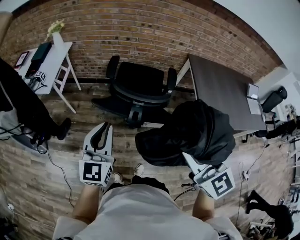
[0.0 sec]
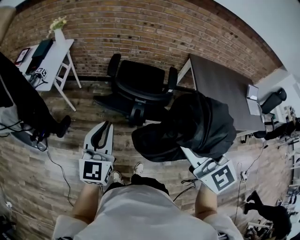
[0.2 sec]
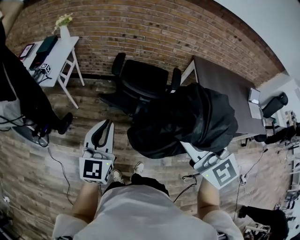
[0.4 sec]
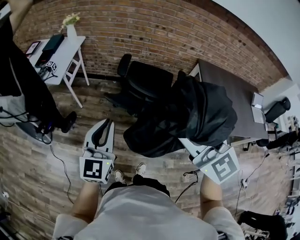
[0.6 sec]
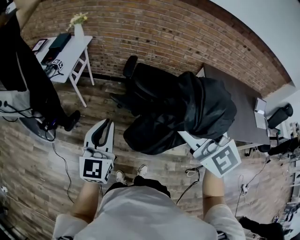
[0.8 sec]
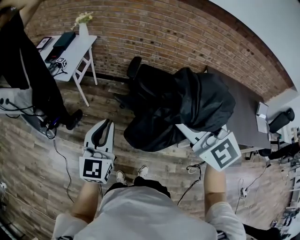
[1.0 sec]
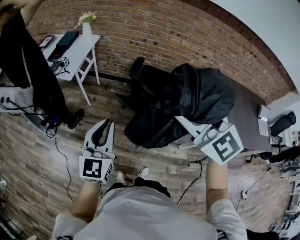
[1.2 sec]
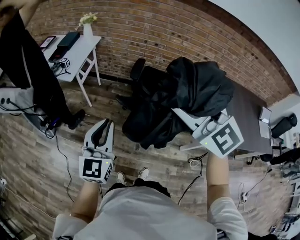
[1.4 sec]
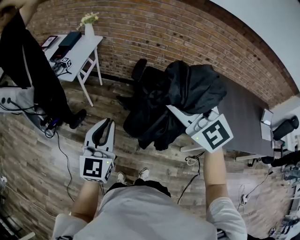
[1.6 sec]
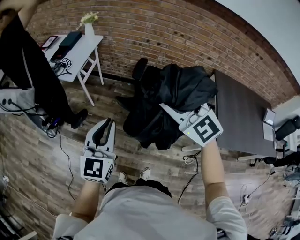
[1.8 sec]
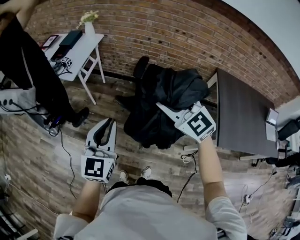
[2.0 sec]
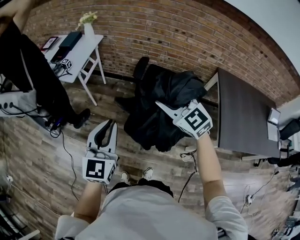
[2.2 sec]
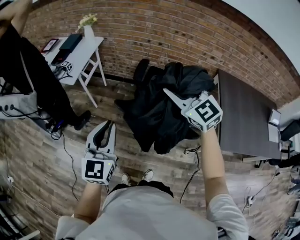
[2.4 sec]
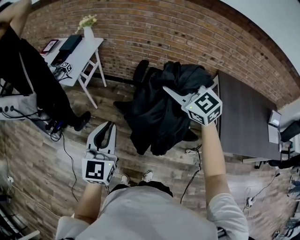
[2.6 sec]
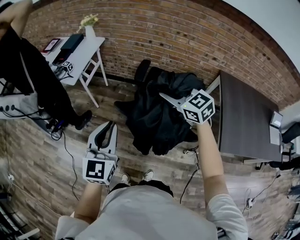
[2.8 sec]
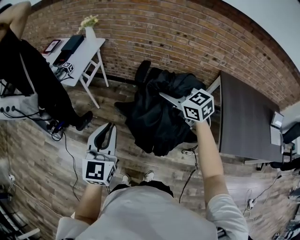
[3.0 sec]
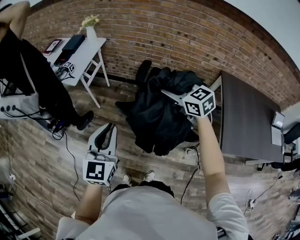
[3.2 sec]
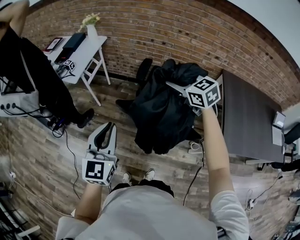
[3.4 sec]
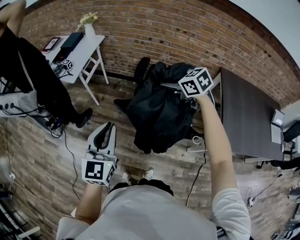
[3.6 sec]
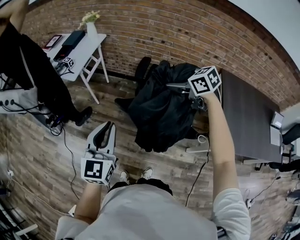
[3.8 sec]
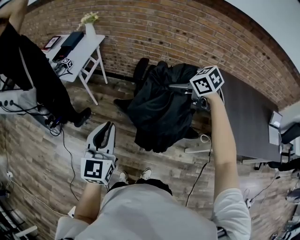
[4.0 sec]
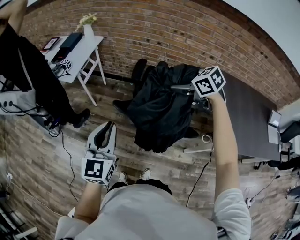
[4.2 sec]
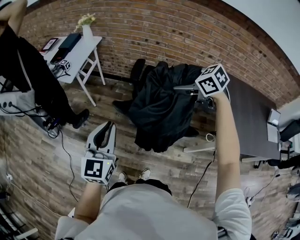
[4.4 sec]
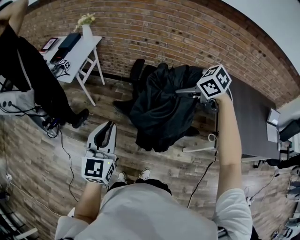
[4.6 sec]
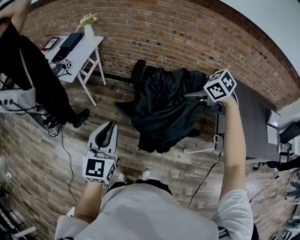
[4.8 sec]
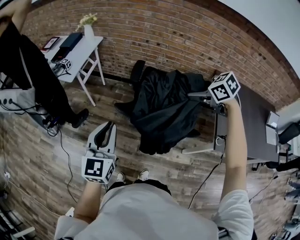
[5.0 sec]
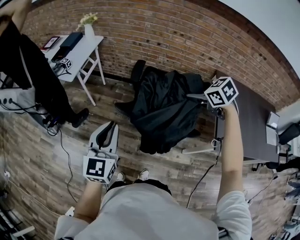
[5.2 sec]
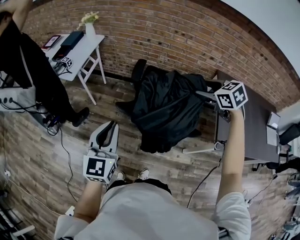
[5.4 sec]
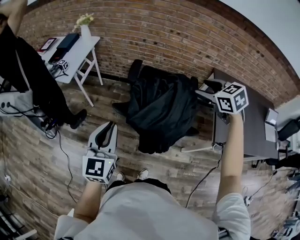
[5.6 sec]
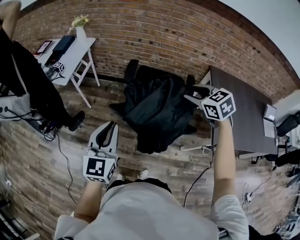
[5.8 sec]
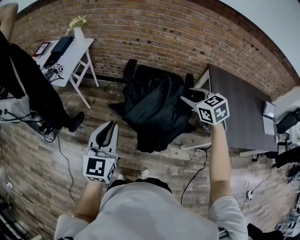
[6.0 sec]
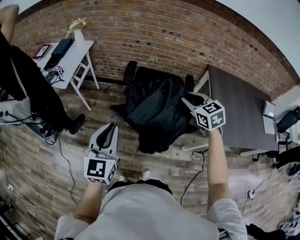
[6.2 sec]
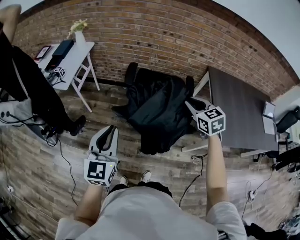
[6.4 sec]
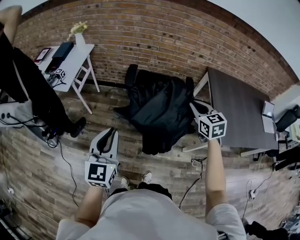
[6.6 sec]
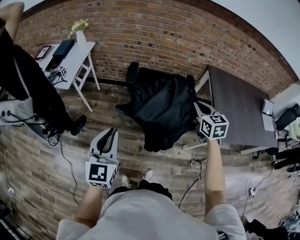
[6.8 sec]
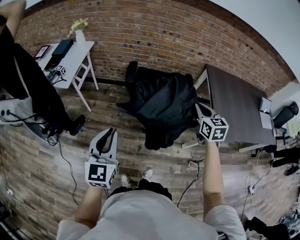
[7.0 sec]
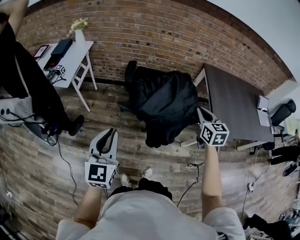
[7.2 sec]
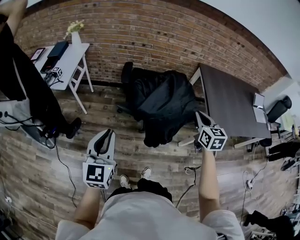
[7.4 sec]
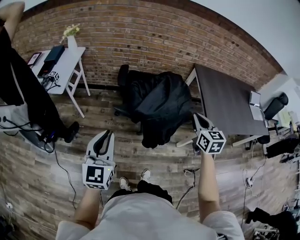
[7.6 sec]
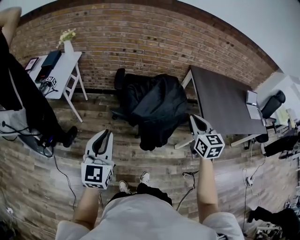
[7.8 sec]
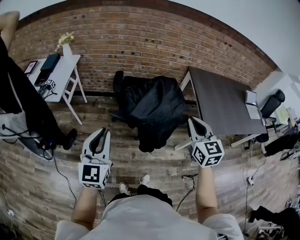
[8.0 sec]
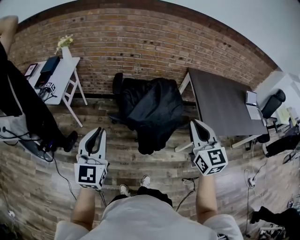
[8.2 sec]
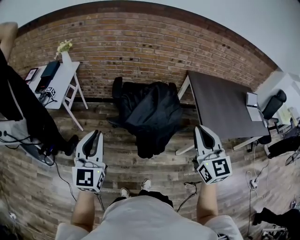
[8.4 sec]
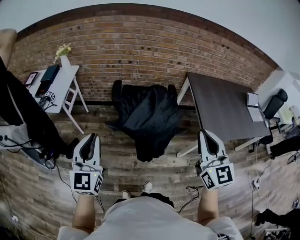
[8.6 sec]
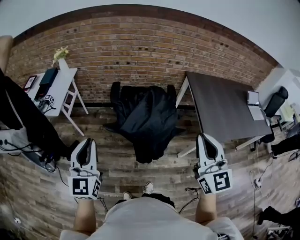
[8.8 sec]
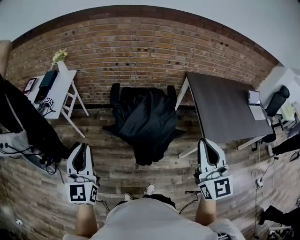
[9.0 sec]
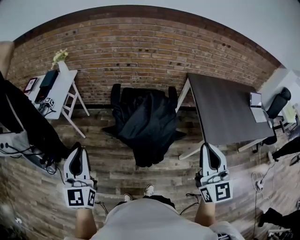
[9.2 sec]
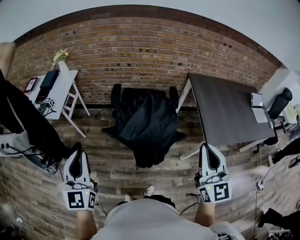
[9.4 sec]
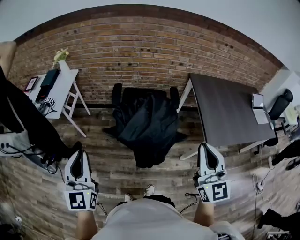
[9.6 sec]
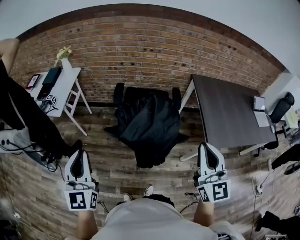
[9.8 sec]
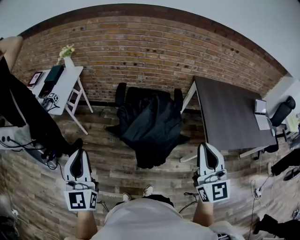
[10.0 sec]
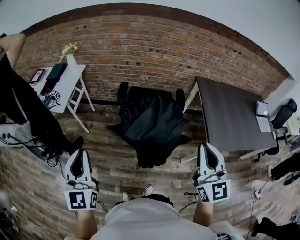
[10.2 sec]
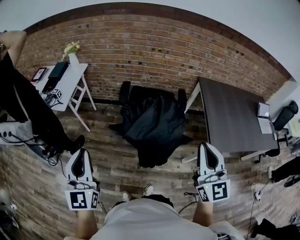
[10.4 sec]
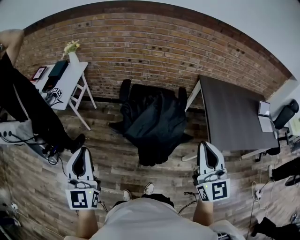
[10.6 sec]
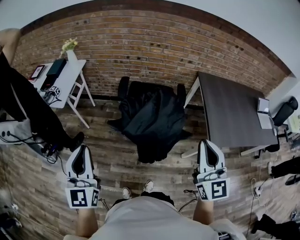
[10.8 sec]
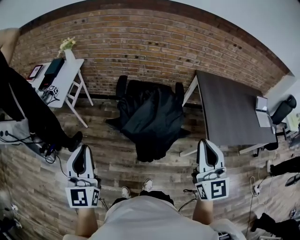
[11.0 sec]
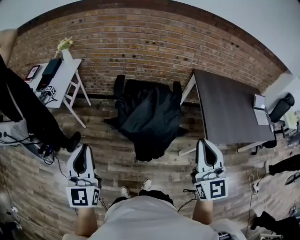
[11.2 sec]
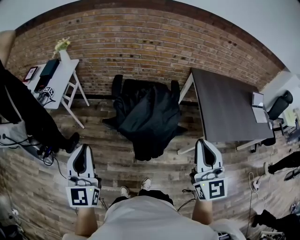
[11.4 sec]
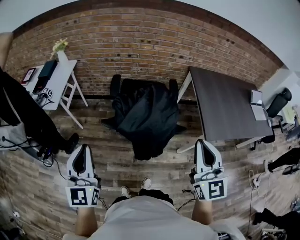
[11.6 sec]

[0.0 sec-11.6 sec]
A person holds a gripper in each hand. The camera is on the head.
0.0 sec to 1.4 sec: The left gripper travels to the left by about 10 cm, while the right gripper shifts approximately 20 cm forward, to the left and upward, and rotates approximately 40 degrees.
1.4 sec to 2.8 sec: The left gripper heads to the right, covering roughly 5 cm. Meanwhile the right gripper swings up and down, roughly 15 cm each way, with 2 reversals, and swivels some 30 degrees.
2.8 sec to 4.4 sec: The right gripper moves to the right, approximately 10 cm, swivels approximately 30 degrees, and opens its fingers.
4.4 sec to 5.8 sec: The right gripper shifts roughly 10 cm to the right and backward, and swivels some 20 degrees.
5.8 sec to 7.2 sec: The left gripper shifts roughly 10 cm to the left and backward. The right gripper is displaced backward by roughly 10 cm, changes its angle by approximately 40 degrees, and closes up.
7.2 sec to 8.8 sec: The left gripper travels upward by roughly 5 cm; the right gripper goes about 20 cm upward and backward, and changes its angle by roughly 30 degrees.
8.8 sec to 11.6 sec: The grippers move only a little.

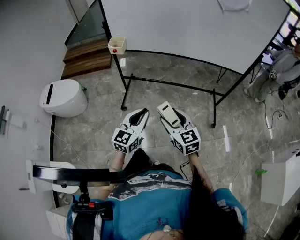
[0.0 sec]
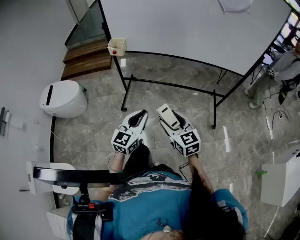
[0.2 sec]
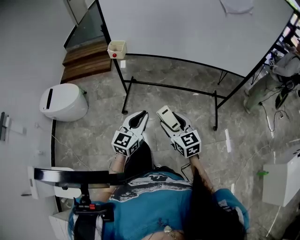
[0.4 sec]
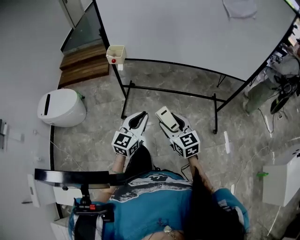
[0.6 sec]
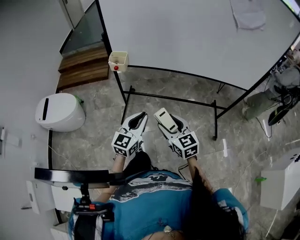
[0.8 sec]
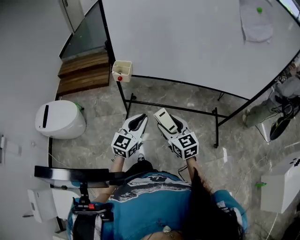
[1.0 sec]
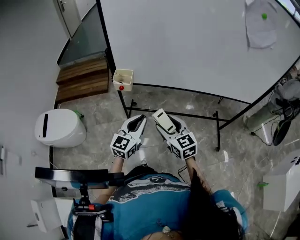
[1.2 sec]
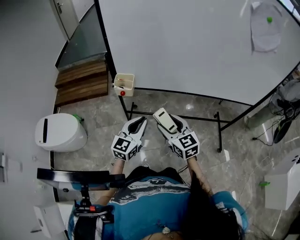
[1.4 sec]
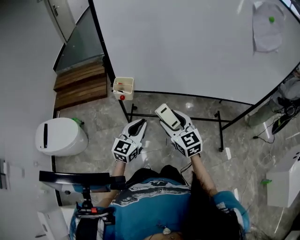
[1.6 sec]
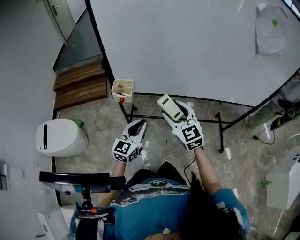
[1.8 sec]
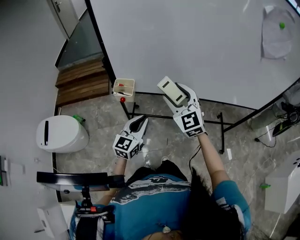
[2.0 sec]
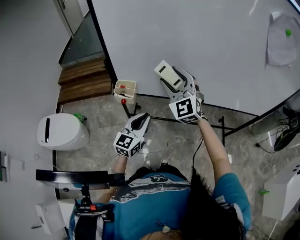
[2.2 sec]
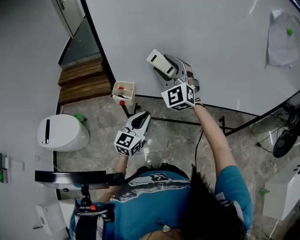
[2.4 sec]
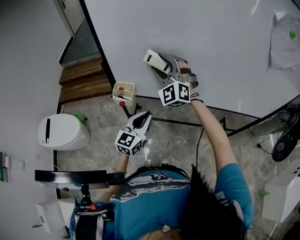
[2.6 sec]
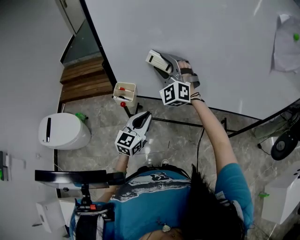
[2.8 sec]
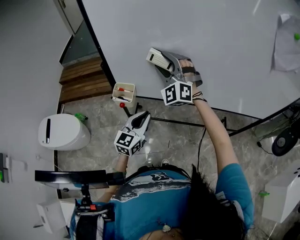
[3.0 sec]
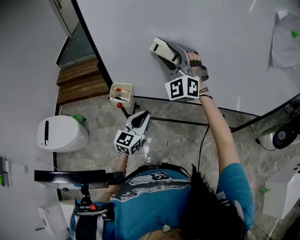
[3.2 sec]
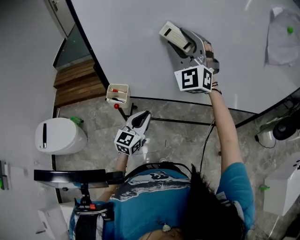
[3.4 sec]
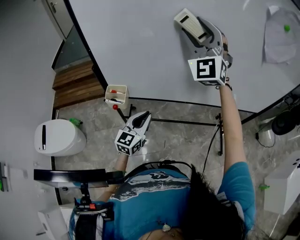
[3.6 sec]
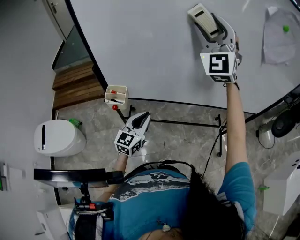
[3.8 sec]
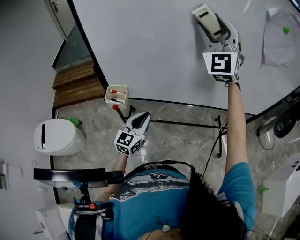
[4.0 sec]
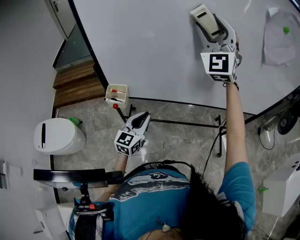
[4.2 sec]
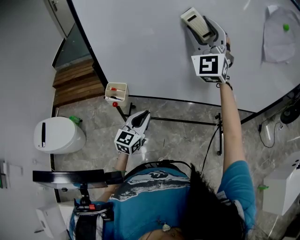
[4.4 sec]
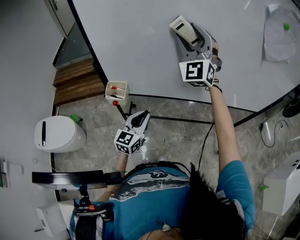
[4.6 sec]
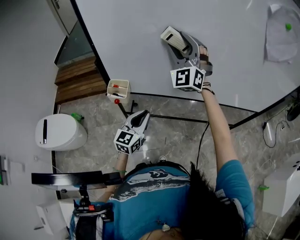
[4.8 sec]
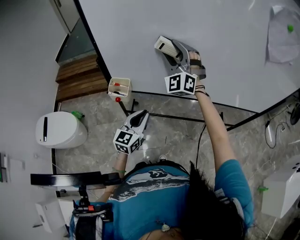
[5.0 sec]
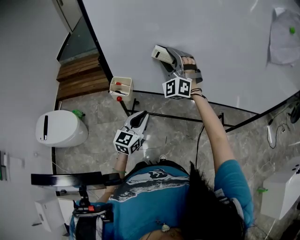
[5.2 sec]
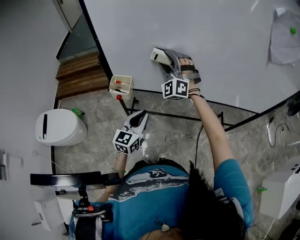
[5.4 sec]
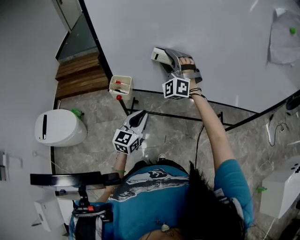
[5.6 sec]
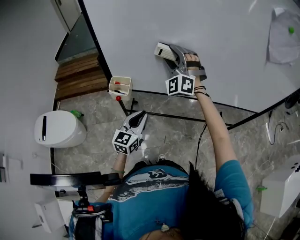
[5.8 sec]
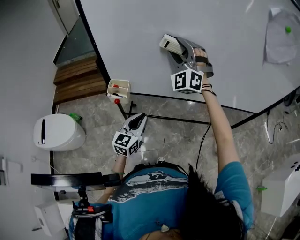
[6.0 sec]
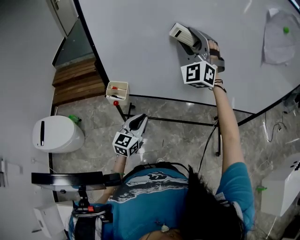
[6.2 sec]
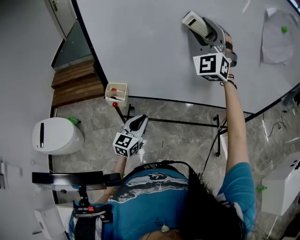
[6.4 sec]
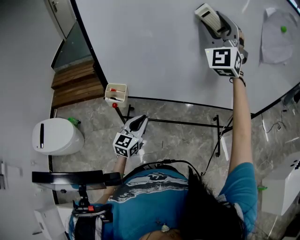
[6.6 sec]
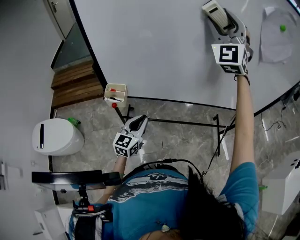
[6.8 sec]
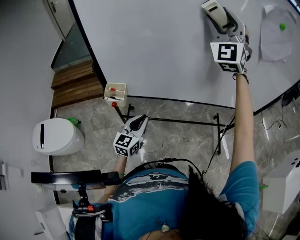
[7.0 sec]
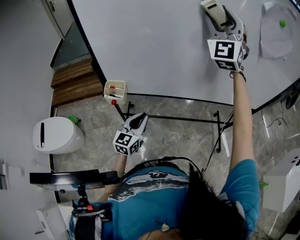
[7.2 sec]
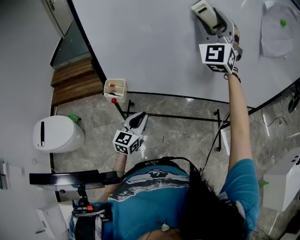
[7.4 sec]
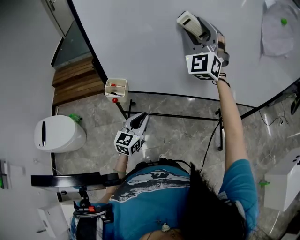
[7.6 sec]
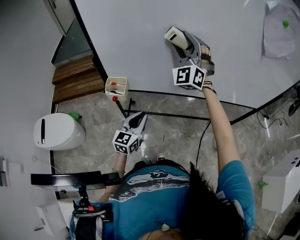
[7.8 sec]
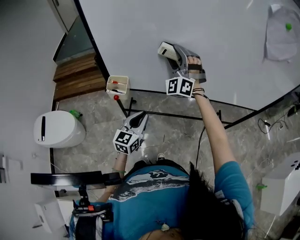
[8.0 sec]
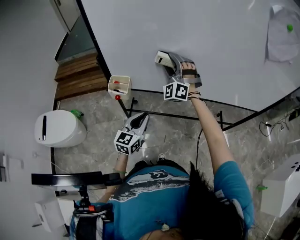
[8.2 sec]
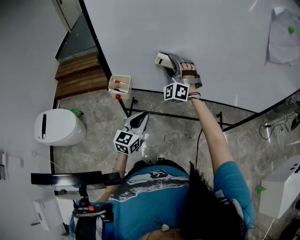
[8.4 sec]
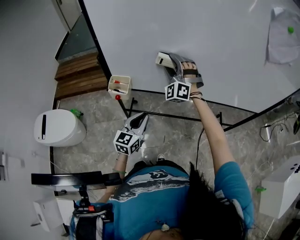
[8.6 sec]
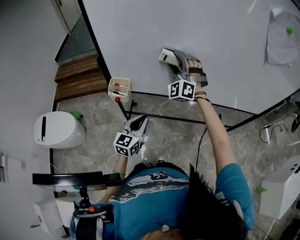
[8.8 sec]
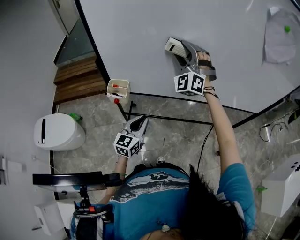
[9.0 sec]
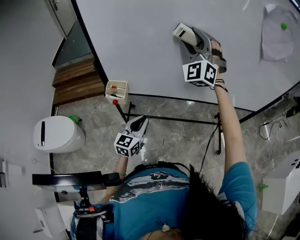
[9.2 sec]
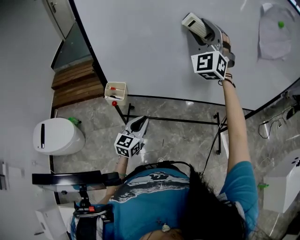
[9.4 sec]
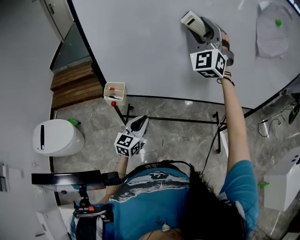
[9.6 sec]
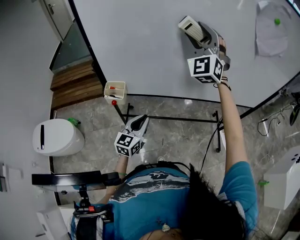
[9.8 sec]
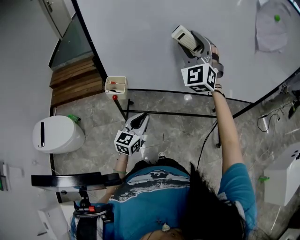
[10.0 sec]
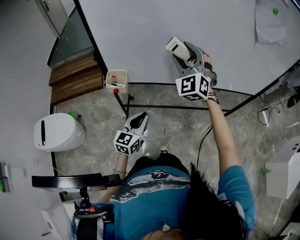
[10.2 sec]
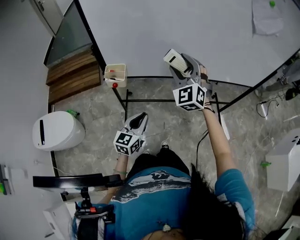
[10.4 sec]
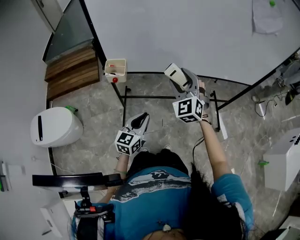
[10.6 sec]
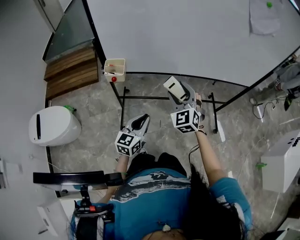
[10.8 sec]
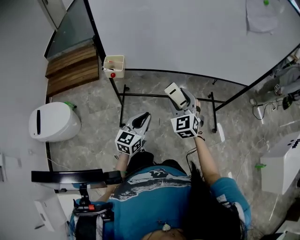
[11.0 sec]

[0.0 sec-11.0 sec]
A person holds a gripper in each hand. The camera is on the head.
0.0 sec to 1.6 sec: The right gripper goes approximately 35 cm forward, while the left gripper travels forward and to the left by some 35 cm.
1.6 sec to 3.2 sec: The right gripper goes some 30 cm forward and upward, and rolls counterclockwise, seen from behind, by approximately 60 degrees. Meanwhile the left gripper heads forward, covering approximately 10 cm.
3.2 sec to 4.8 sec: The right gripper moves some 15 cm upward and comes back.
4.8 sec to 6.2 sec: The right gripper moves roughly 10 cm downward and comes back.
6.2 sec to 7.8 sec: The right gripper moves some 15 cm upward and comes back.
7.8 sec to 9.4 sec: The right gripper goes approximately 10 cm upward and to the right.
9.4 sec to 11.0 sec: The left gripper heads backward, covering roughly 15 cm; the right gripper goes about 40 cm downward and backward, and turns by about 40 degrees.

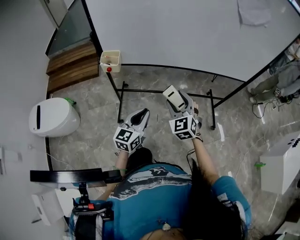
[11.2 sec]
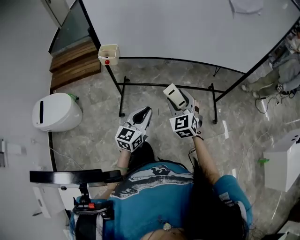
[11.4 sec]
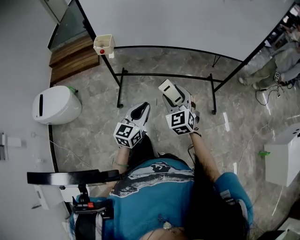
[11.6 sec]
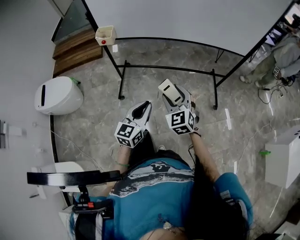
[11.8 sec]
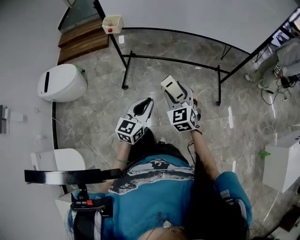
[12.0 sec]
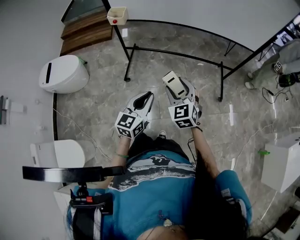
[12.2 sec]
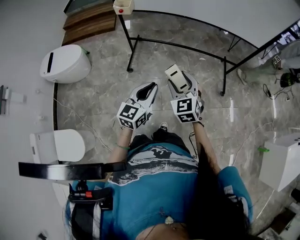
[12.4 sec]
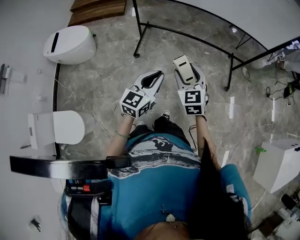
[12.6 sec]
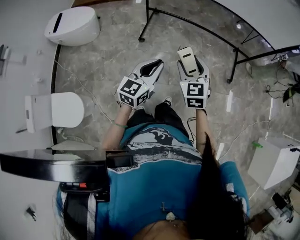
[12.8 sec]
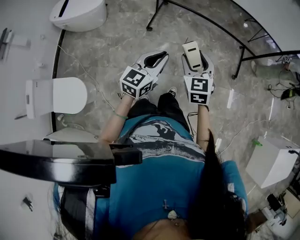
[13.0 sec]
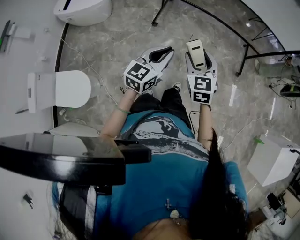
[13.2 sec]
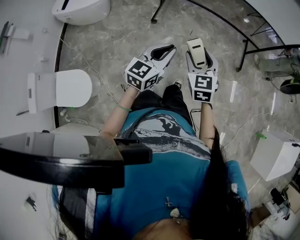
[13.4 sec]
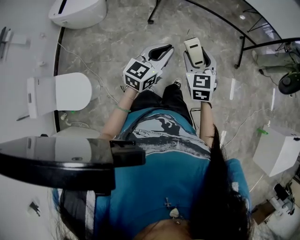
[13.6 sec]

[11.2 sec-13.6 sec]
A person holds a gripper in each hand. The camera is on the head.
11.2 sec to 12.4 sec: Both grippers move backward, approximately 25 cm.
12.4 sec to 13.6 sec: Both grippers travel together backward and to the left, roughly 25 cm.
